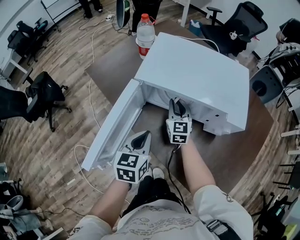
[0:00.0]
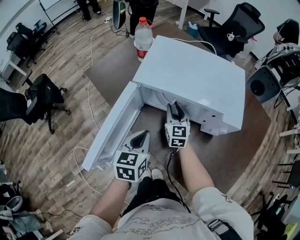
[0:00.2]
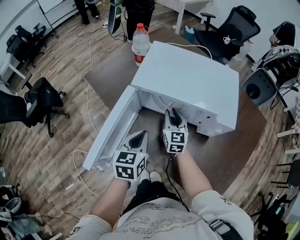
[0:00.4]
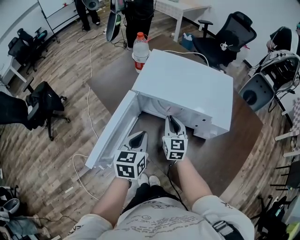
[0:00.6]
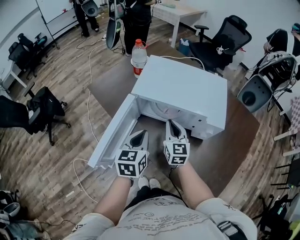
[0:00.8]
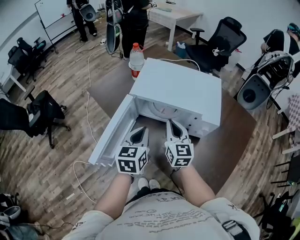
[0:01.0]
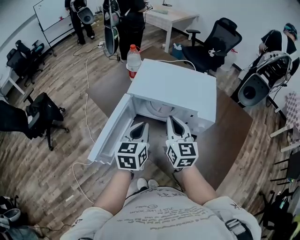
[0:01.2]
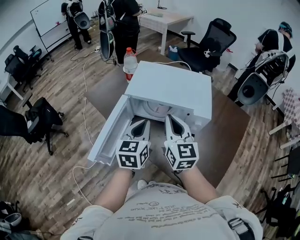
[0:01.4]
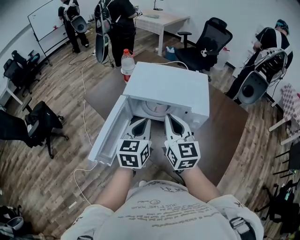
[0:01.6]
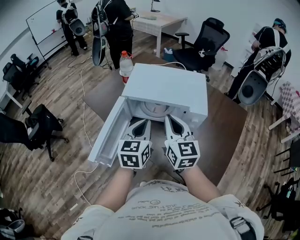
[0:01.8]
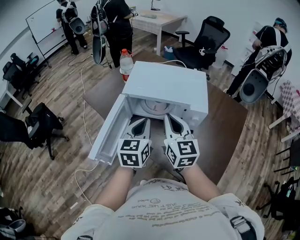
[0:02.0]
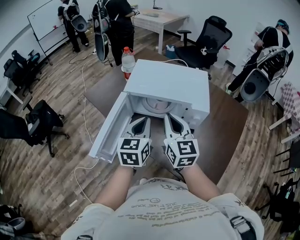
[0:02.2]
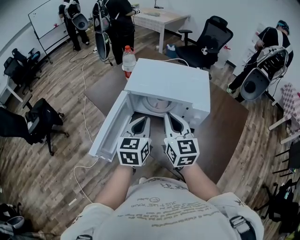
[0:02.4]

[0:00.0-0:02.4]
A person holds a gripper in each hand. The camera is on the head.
0:00.0 to 0:01.2: The left gripper travels upward by roughly 10 cm; the right gripper moves upward and backward, about 25 cm.
0:01.2 to 0:02.4: The right gripper moves about 5 cm.

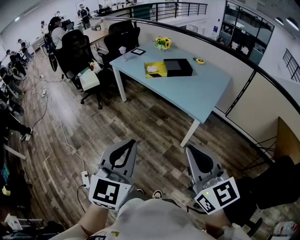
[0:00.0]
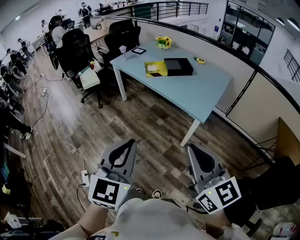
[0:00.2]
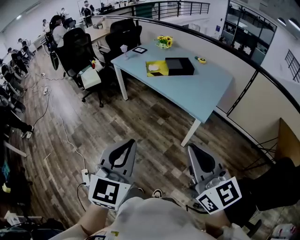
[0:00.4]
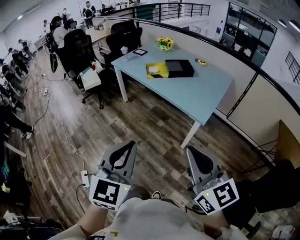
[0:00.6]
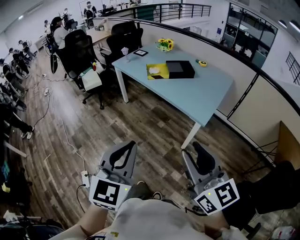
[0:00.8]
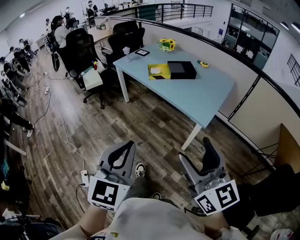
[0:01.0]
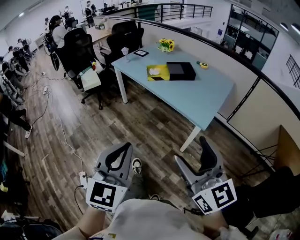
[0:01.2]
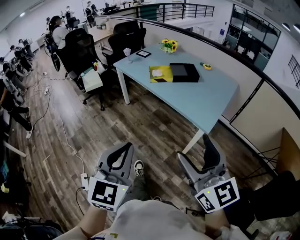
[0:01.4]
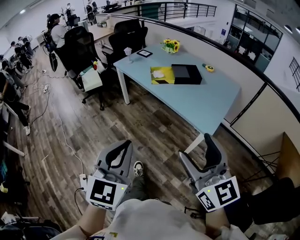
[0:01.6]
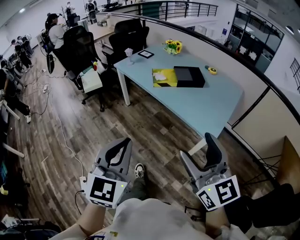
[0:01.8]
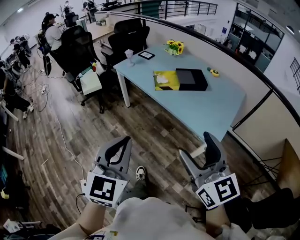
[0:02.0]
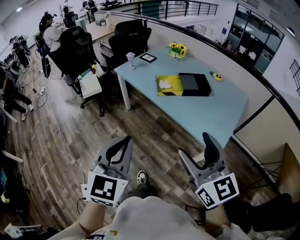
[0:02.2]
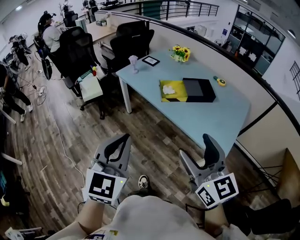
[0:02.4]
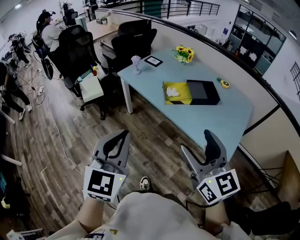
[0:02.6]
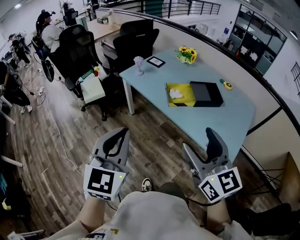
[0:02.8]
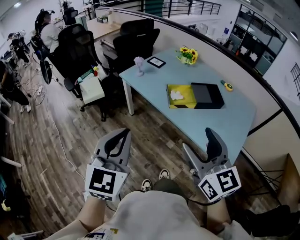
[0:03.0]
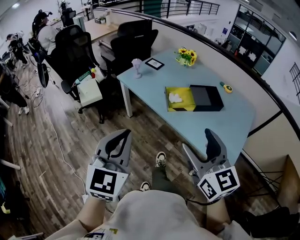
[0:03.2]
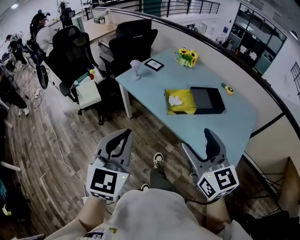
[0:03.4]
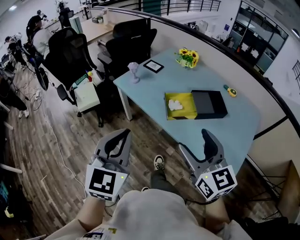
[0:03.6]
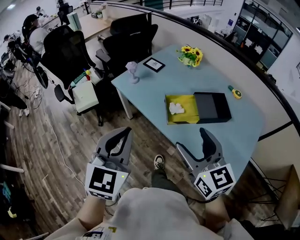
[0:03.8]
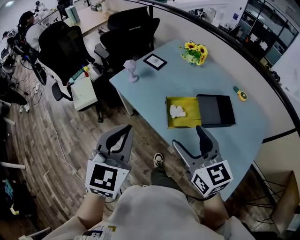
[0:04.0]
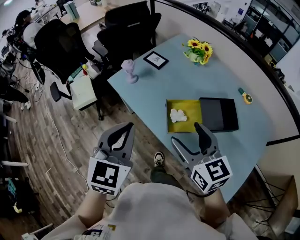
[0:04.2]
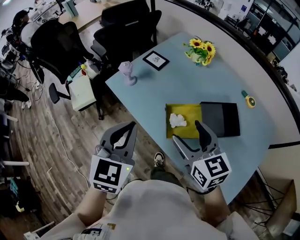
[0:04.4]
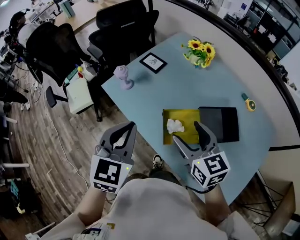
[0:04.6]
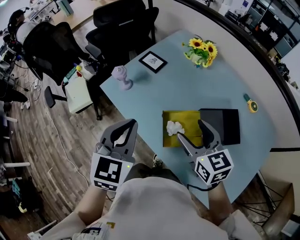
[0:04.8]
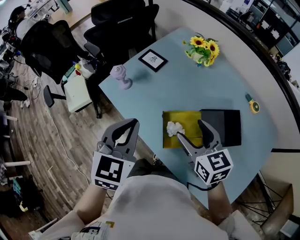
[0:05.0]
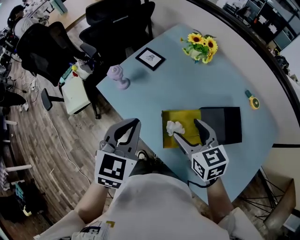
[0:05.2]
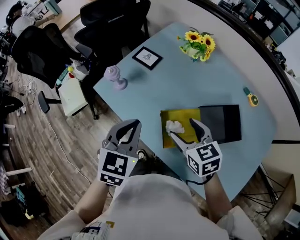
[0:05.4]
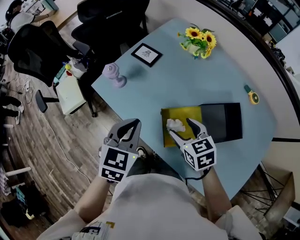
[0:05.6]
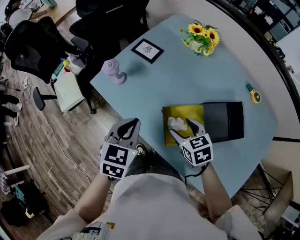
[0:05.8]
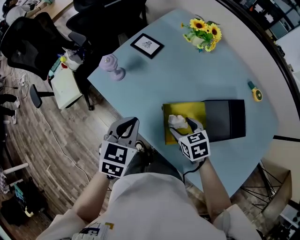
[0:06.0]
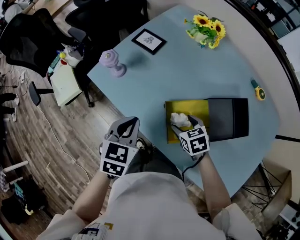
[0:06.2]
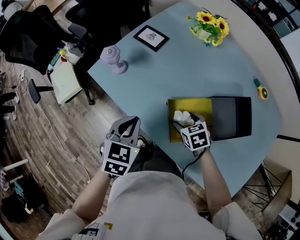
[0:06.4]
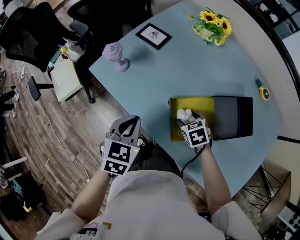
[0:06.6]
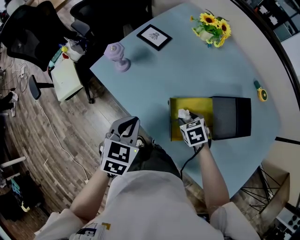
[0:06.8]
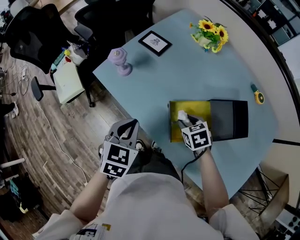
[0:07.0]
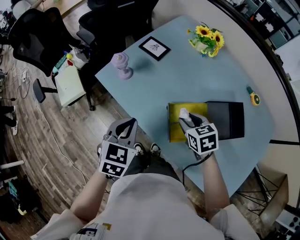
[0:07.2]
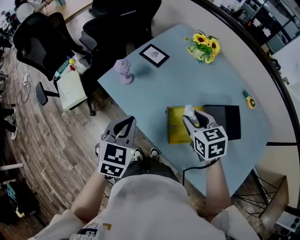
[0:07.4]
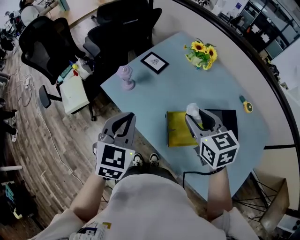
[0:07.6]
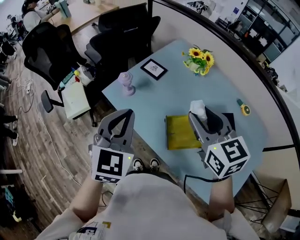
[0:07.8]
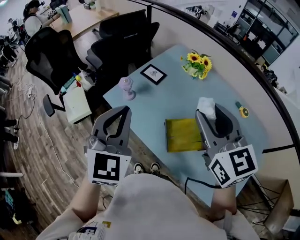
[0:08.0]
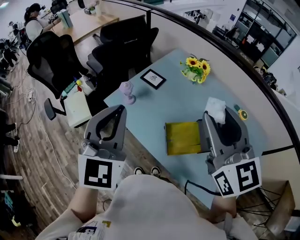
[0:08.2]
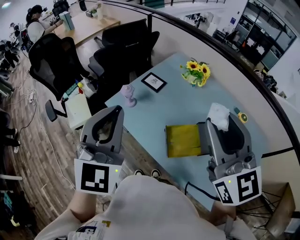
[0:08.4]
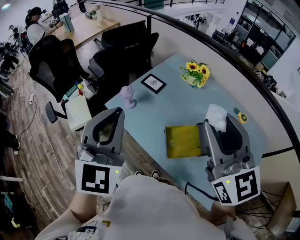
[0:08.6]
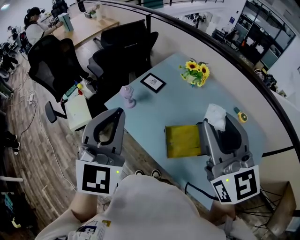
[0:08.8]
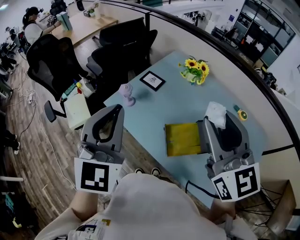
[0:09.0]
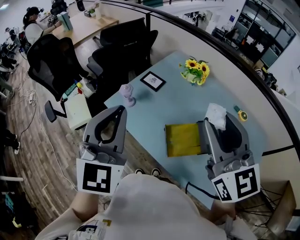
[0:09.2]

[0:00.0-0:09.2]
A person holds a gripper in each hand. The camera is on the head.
0:00.0 to 0:01.6: Both grippers travel together forward, some 10 cm. The right gripper opens.
0:01.6 to 0:03.0: The left gripper travels forward and to the left by about 40 cm. Meanwhile the right gripper heads forward, covering approximately 35 cm.
0:03.0 to 0:04.6: The two grippers travel together, forward, approximately 40 cm. The right gripper swivels roughly 20 degrees.
0:04.6 to 0:06.2: The grippers both shift downward by some 25 cm. The left gripper swivels about 20 degrees. The right gripper angles its fingers downward, by about 40 degrees.
0:06.2 to 0:07.6: The left gripper shifts approximately 15 cm upward. Meanwhile the right gripper moves upward, about 25 cm, turns by roughly 30 degrees, and closes its fingers.
0:07.6 to 0:09.2: The grippers both shift upward by roughly 20 cm. The left gripper rotates some 30 degrees. The right gripper swivels approximately 30 degrees.

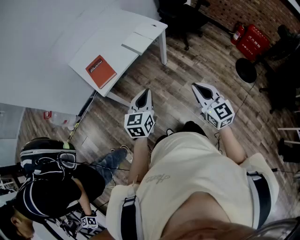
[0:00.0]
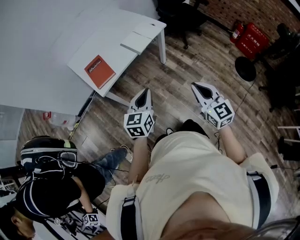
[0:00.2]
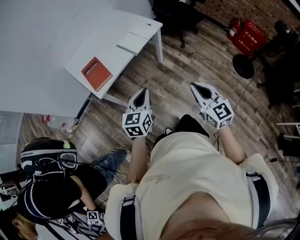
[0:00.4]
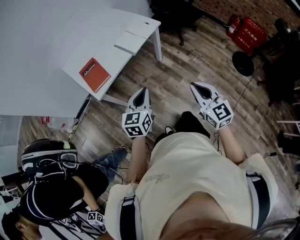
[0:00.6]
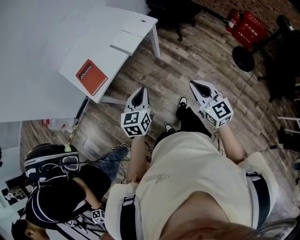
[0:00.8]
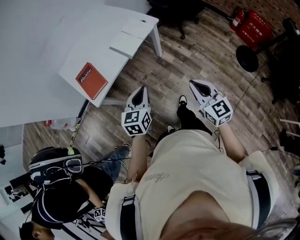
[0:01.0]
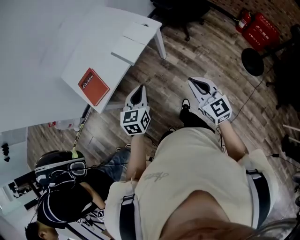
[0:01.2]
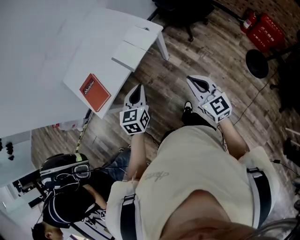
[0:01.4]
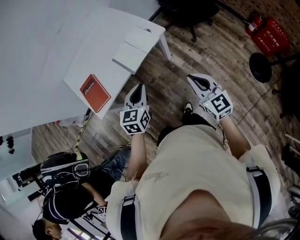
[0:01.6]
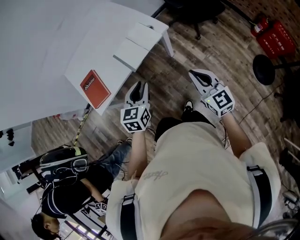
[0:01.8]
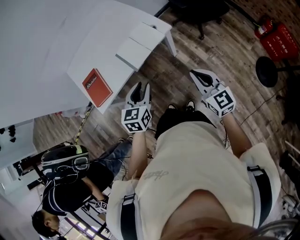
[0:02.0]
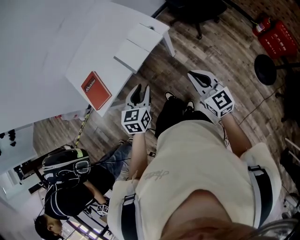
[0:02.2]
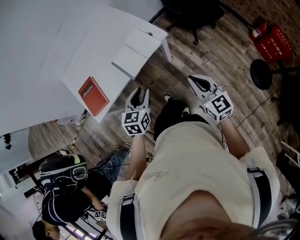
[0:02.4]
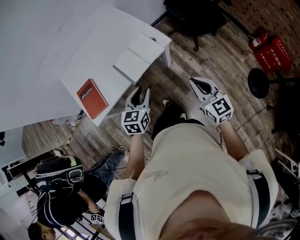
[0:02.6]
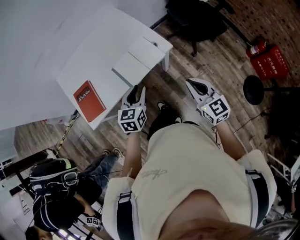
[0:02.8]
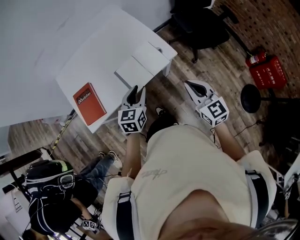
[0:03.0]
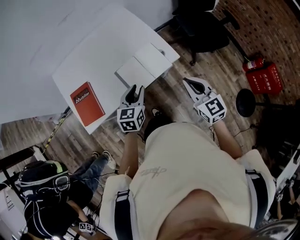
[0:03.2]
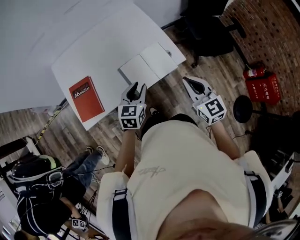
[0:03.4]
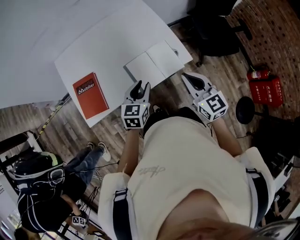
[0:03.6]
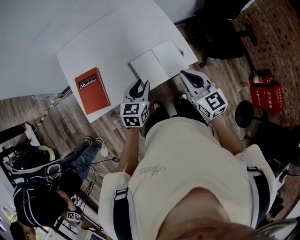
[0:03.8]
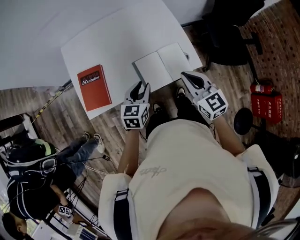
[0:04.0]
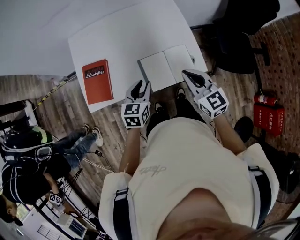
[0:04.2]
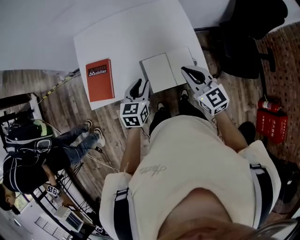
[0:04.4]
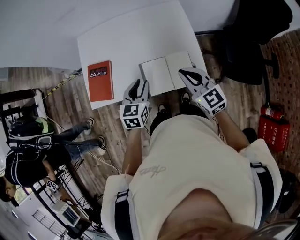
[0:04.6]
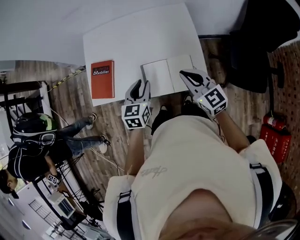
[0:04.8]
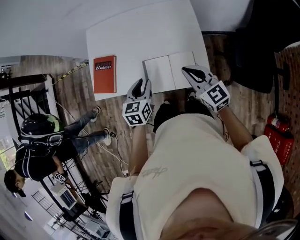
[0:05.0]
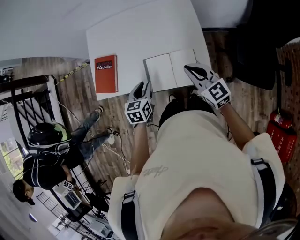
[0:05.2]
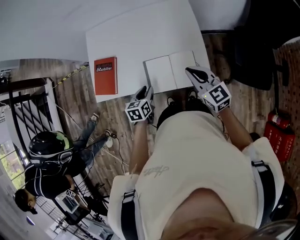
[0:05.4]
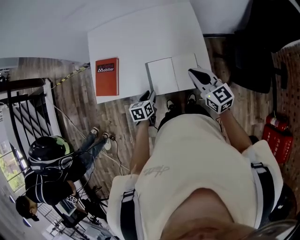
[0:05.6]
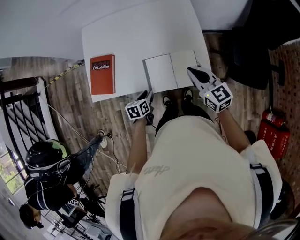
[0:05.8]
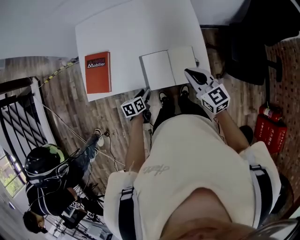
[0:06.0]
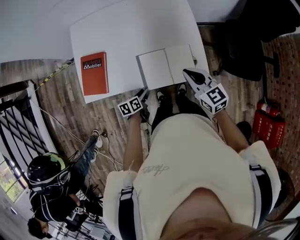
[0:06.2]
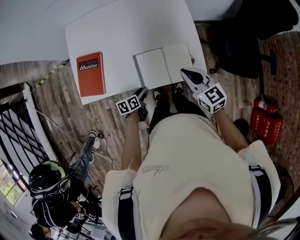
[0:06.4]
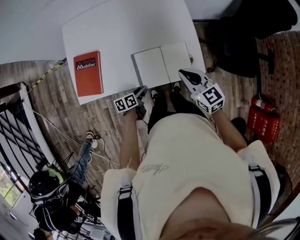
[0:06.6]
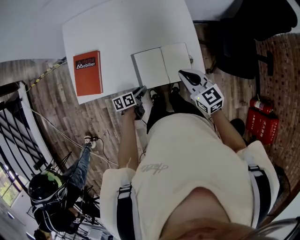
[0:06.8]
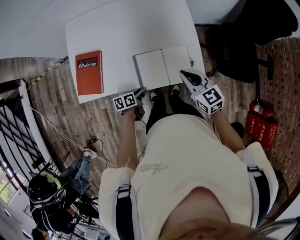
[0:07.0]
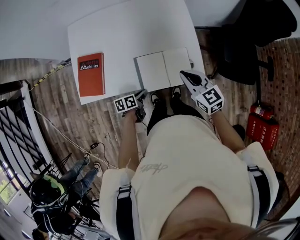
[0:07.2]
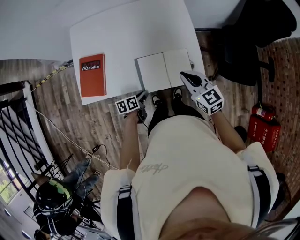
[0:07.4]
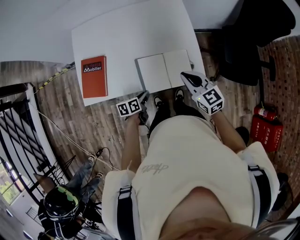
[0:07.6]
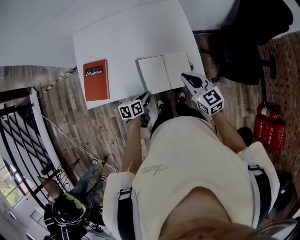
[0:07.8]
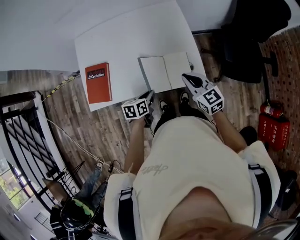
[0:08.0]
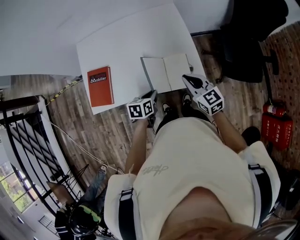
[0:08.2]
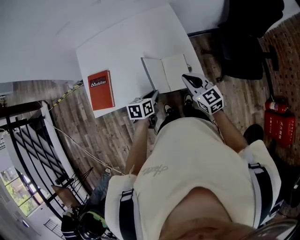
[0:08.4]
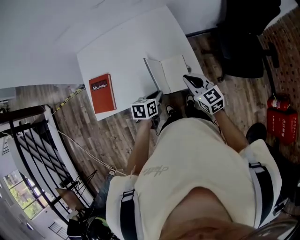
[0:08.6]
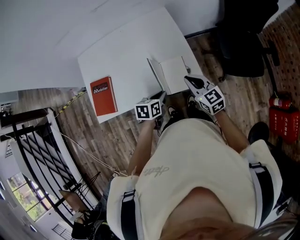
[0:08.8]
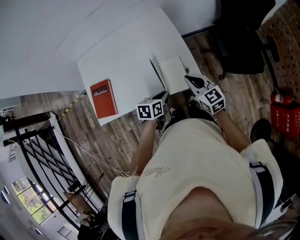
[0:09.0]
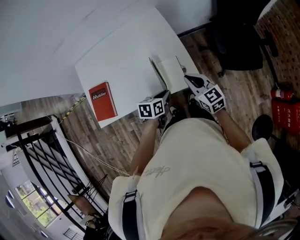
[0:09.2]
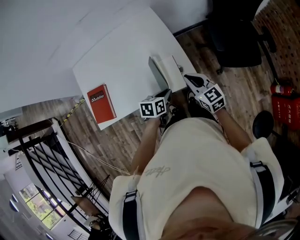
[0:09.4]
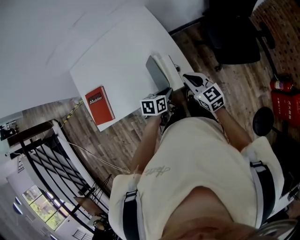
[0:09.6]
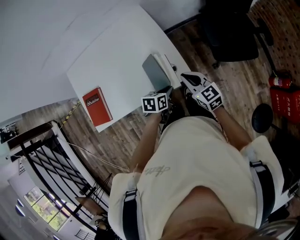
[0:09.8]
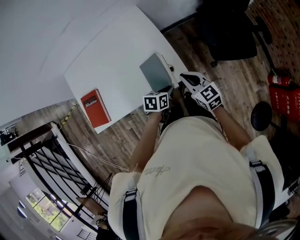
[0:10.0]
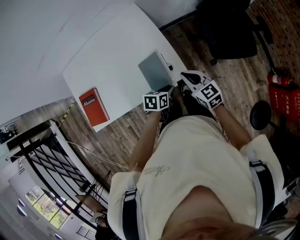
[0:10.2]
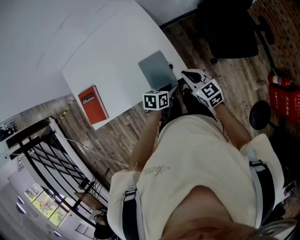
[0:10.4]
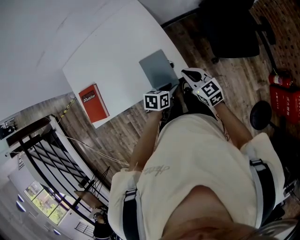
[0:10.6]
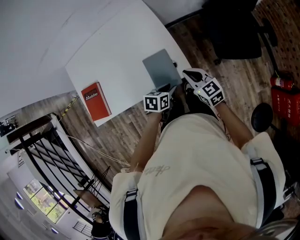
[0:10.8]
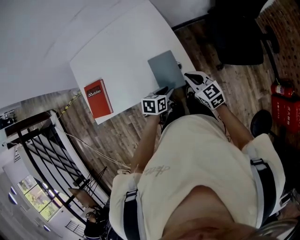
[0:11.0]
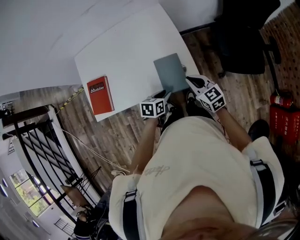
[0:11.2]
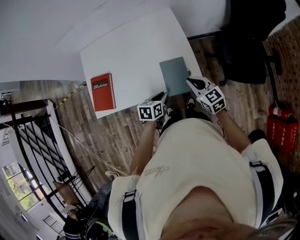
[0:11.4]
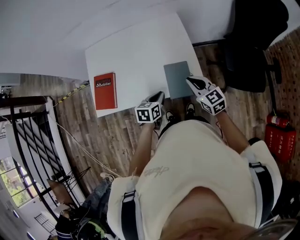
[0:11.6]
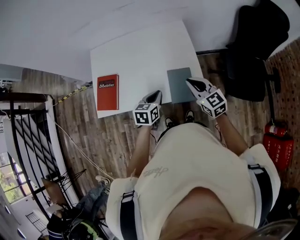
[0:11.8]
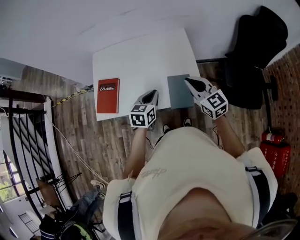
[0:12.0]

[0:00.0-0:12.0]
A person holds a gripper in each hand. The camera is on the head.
0:00.0 to 0:01.6: The two grippers go some 25 cm forward and to the right.
0:01.6 to 0:03.0: The two grippers go some 15 cm forward. The left gripper opens its fingers.
0:03.0 to 0:04.4: The right gripper goes about 20 cm forward and to the left, and turns by approximately 30 degrees. Meanwhile the left gripper moves forward and to the left, approximately 10 cm, and changes its angle by some 20 degrees.
0:04.4 to 0:06.0: The left gripper heads downward, covering some 20 cm, and swivels some 40 degrees, while the right gripper is displaced downward by about 5 cm.
0:06.0 to 0:07.6: The left gripper closes its fingers.
0:07.6 to 0:09.0: The right gripper heads to the right, covering some 5 cm, while the left gripper goes about 15 cm to the right and upward, and turns by approximately 30 degrees.
0:09.0 to 0:10.4: The right gripper goes about 5 cm to the right. The left gripper goes about 15 cm to the right and downward, and opens its fingers.
0:10.4 to 0:12.0: The left gripper shifts by some 25 cm, rotates roughly 40 degrees, and closes, while the right gripper moves upward, some 15 cm, and rotates about 20 degrees.
